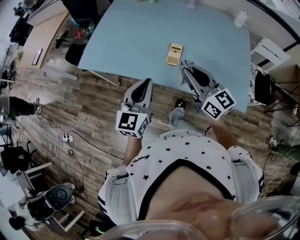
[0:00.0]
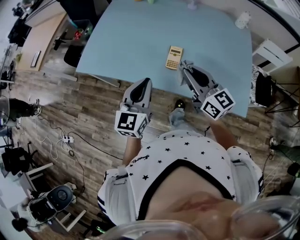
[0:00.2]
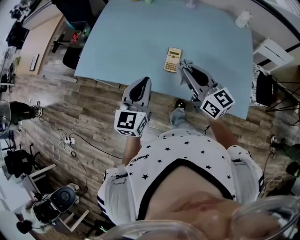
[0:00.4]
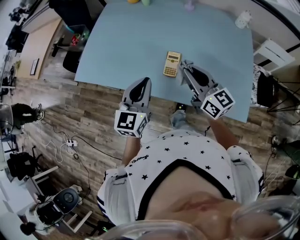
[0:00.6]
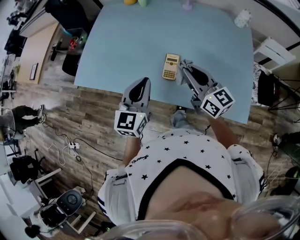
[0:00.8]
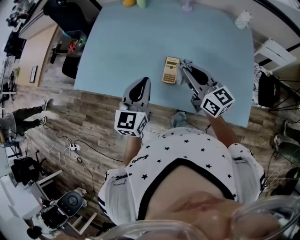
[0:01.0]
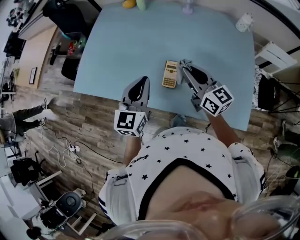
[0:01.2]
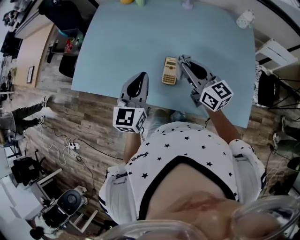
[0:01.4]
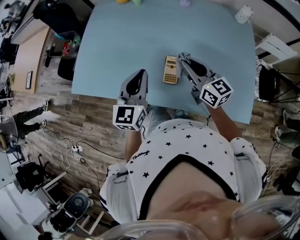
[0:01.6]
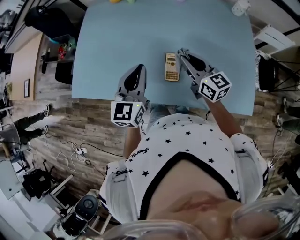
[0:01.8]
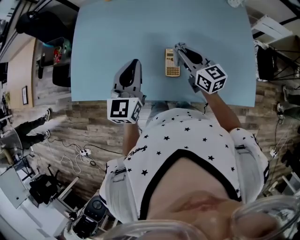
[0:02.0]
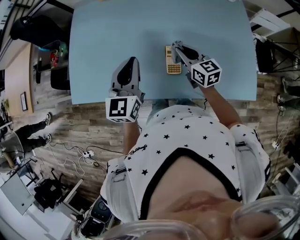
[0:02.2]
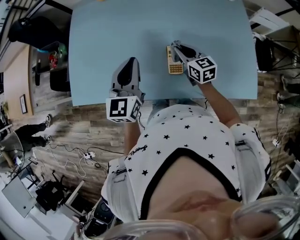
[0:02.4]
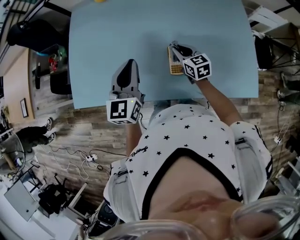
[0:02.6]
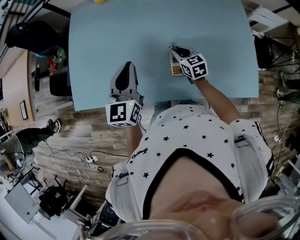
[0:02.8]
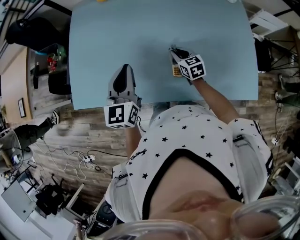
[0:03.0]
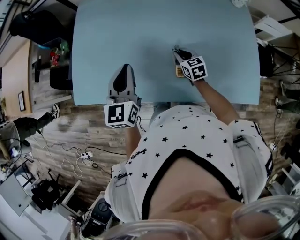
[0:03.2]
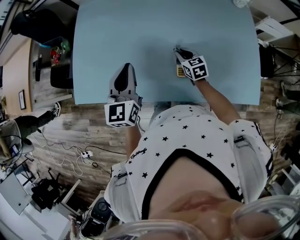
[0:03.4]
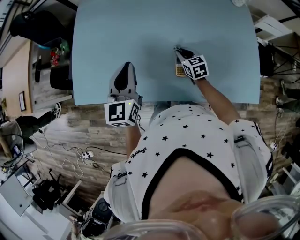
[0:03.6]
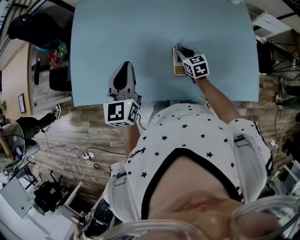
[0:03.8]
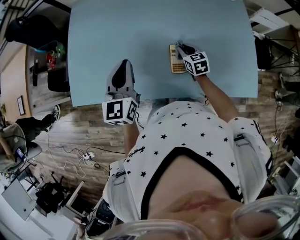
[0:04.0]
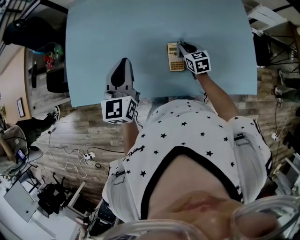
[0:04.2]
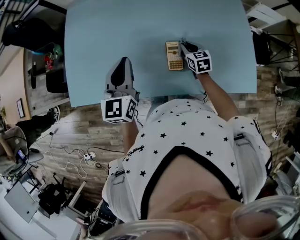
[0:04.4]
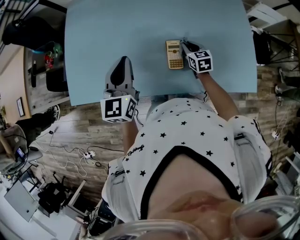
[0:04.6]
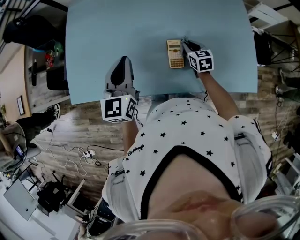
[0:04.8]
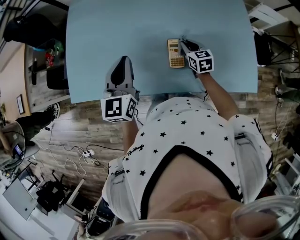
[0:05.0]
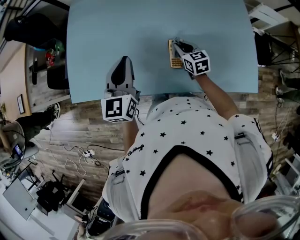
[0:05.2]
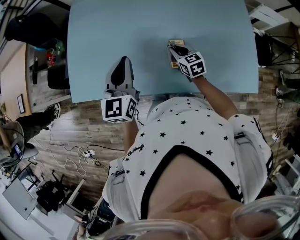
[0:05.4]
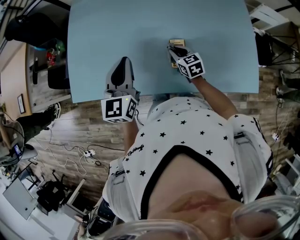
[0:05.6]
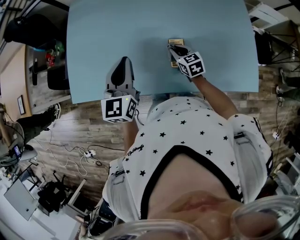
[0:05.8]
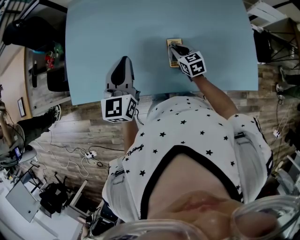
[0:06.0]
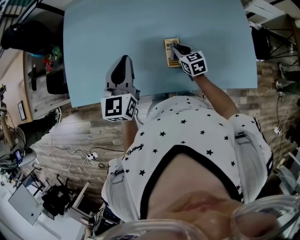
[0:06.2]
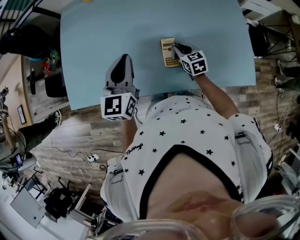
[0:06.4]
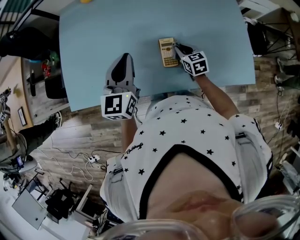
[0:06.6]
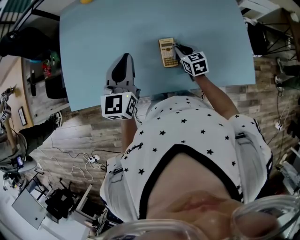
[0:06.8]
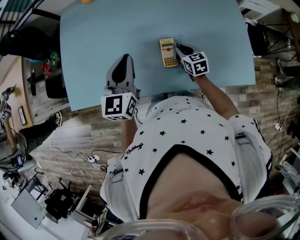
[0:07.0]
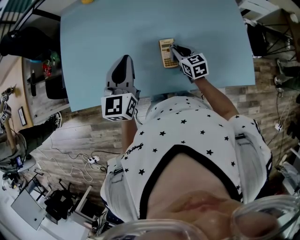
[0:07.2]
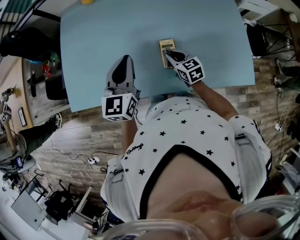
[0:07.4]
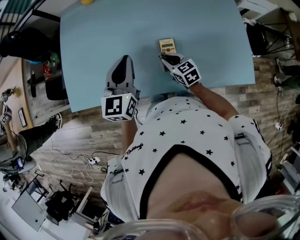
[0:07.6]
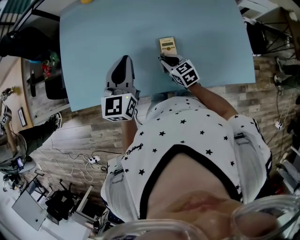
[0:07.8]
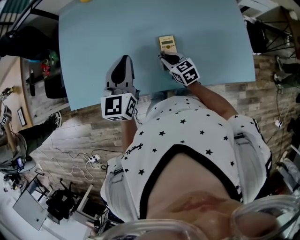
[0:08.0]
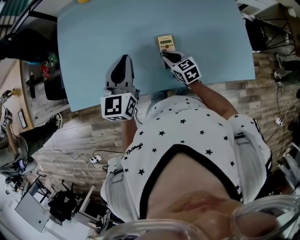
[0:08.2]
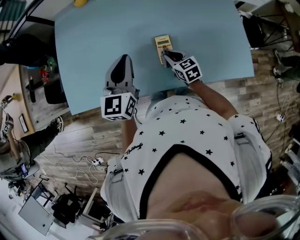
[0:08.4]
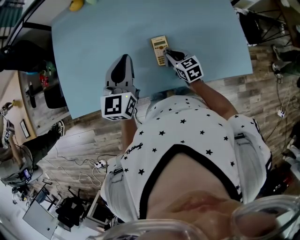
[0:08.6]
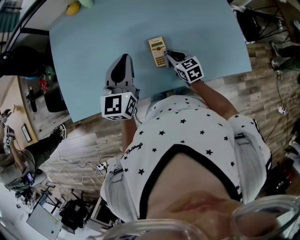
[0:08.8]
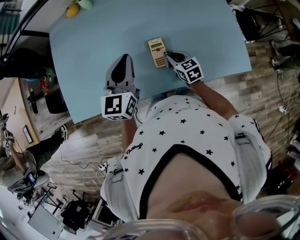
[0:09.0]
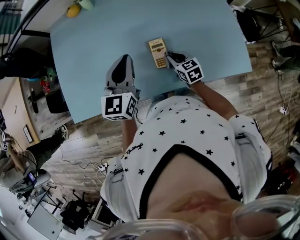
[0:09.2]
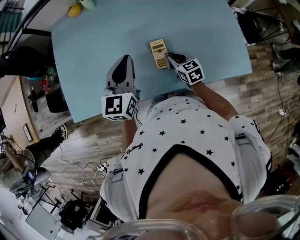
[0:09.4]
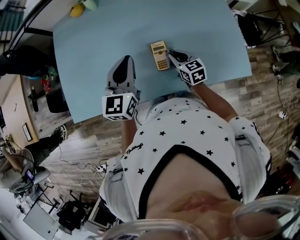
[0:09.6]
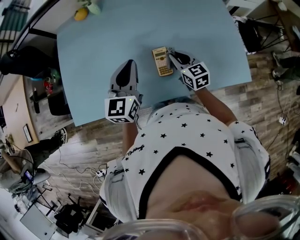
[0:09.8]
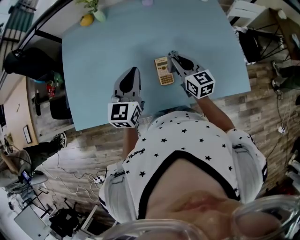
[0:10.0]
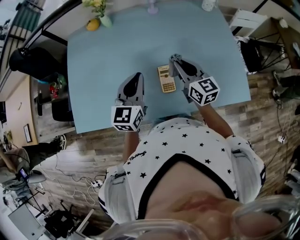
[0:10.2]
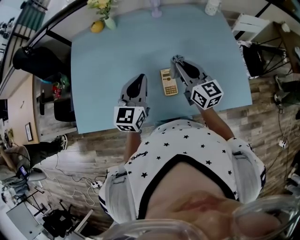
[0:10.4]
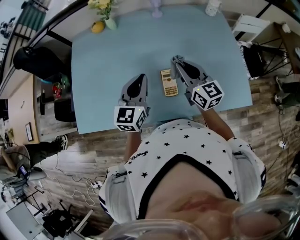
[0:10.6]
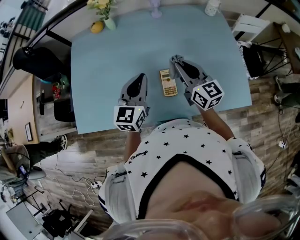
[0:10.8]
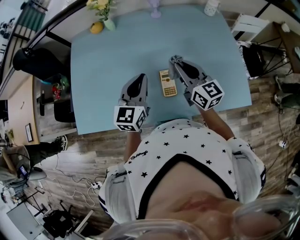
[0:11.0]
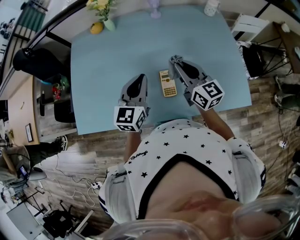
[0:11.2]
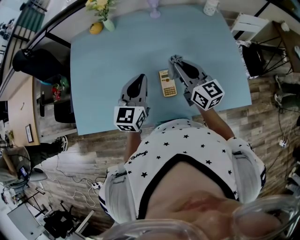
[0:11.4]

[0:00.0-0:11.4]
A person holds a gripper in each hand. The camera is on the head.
0:00.0 to 0:01.4: The two grippers go approximately 15 cm forward.
0:01.4 to 0:02.8: The left gripper moves to the left and forward, roughly 10 cm, while the right gripper goes some 20 cm downward and forward, and tilts its fingers some 30 degrees downward.
0:02.8 to 0:04.2: The right gripper moves roughly 5 cm.
0:04.2 to 0:05.6: The right gripper travels to the left by approximately 5 cm.
0:05.6 to 0:07.2: The right gripper travels to the right by roughly 5 cm.
0:08.6 to 0:10.0: The right gripper moves upward, roughly 15 cm, and turns by about 20 degrees.
0:10.0 to 0:11.4: The right gripper goes about 10 cm upward.

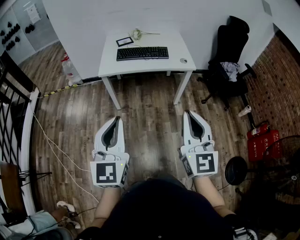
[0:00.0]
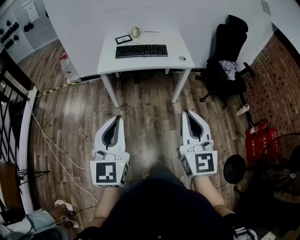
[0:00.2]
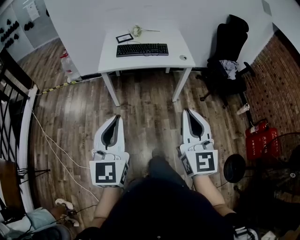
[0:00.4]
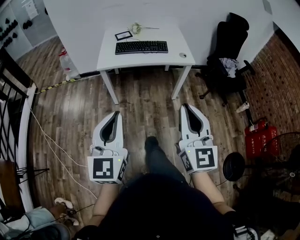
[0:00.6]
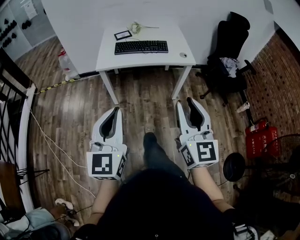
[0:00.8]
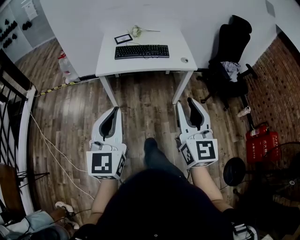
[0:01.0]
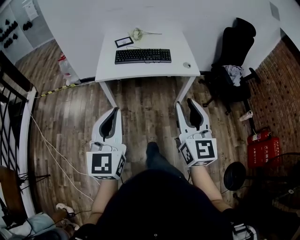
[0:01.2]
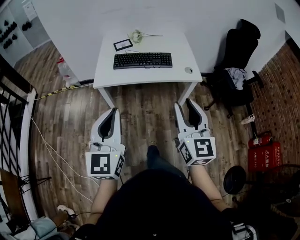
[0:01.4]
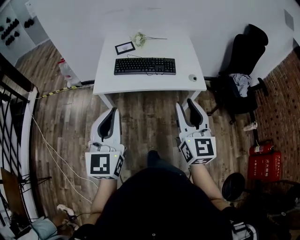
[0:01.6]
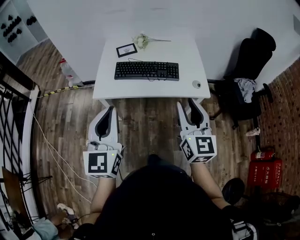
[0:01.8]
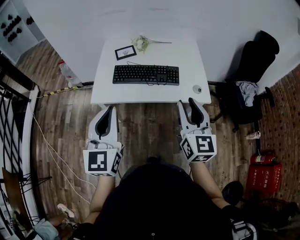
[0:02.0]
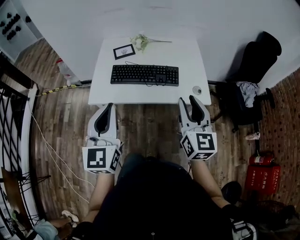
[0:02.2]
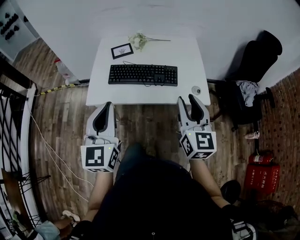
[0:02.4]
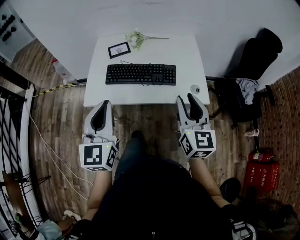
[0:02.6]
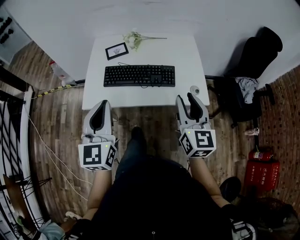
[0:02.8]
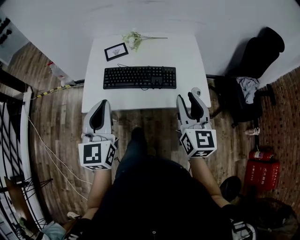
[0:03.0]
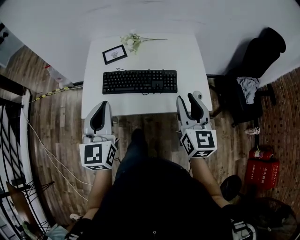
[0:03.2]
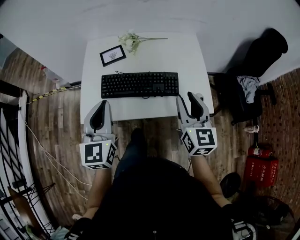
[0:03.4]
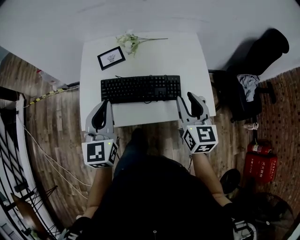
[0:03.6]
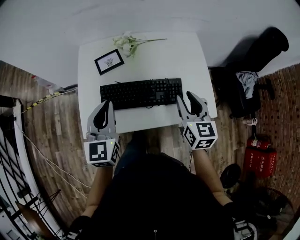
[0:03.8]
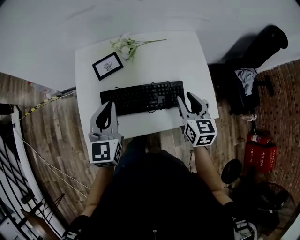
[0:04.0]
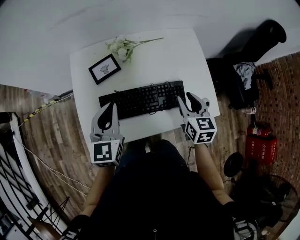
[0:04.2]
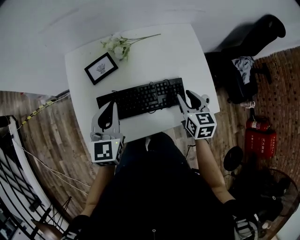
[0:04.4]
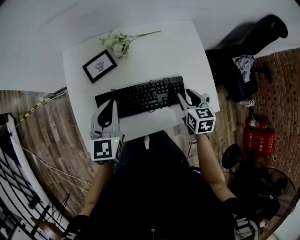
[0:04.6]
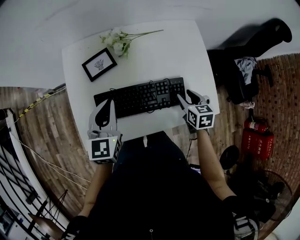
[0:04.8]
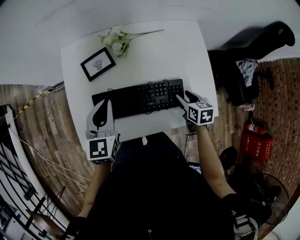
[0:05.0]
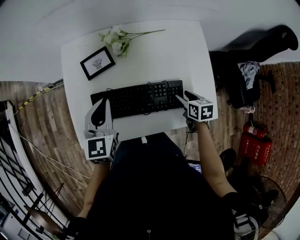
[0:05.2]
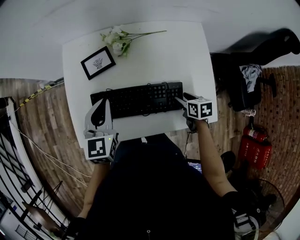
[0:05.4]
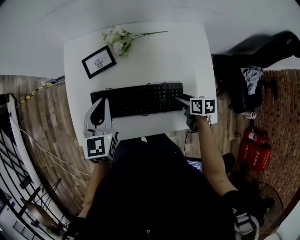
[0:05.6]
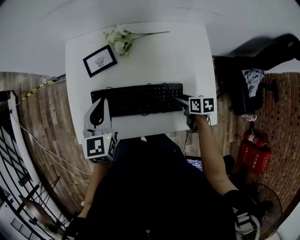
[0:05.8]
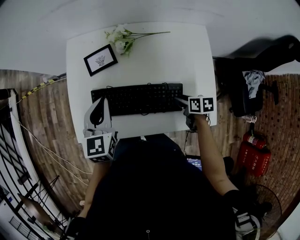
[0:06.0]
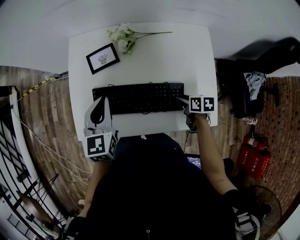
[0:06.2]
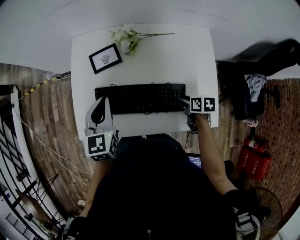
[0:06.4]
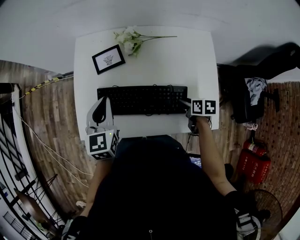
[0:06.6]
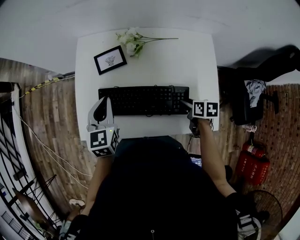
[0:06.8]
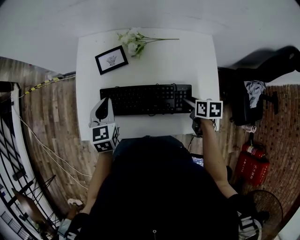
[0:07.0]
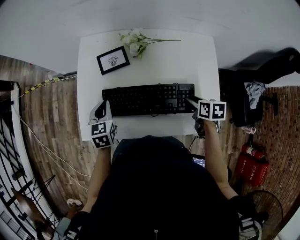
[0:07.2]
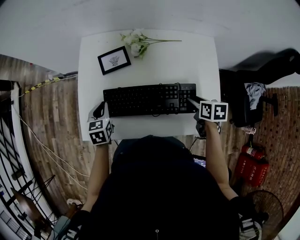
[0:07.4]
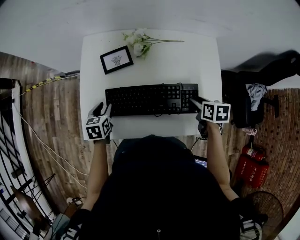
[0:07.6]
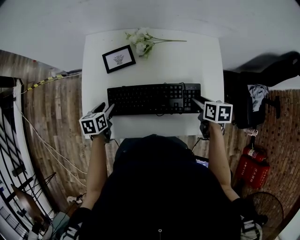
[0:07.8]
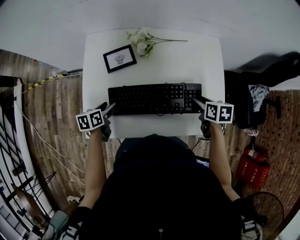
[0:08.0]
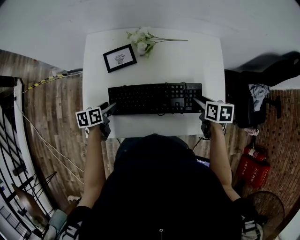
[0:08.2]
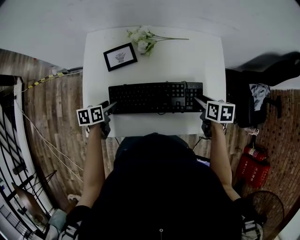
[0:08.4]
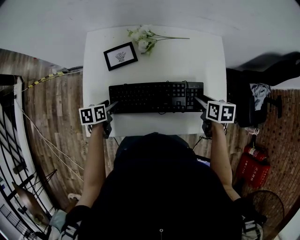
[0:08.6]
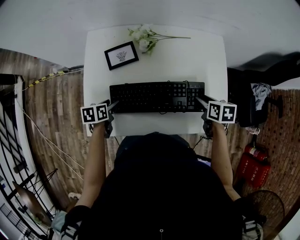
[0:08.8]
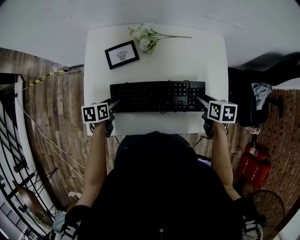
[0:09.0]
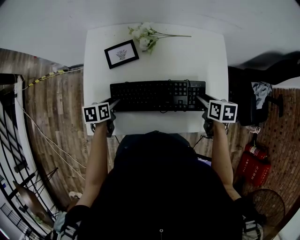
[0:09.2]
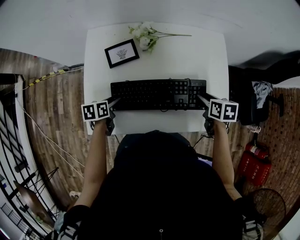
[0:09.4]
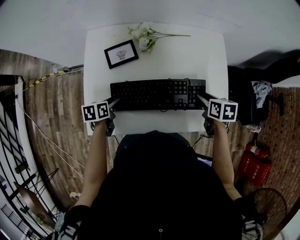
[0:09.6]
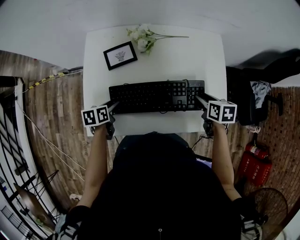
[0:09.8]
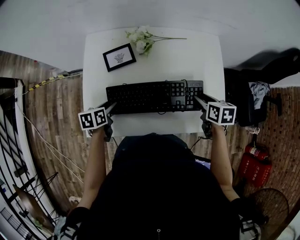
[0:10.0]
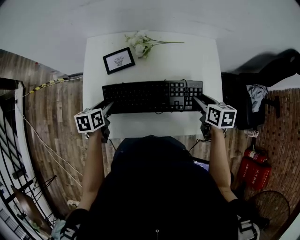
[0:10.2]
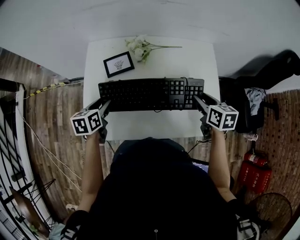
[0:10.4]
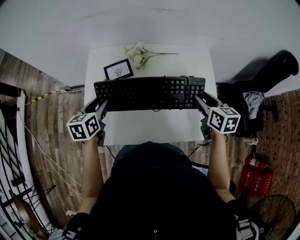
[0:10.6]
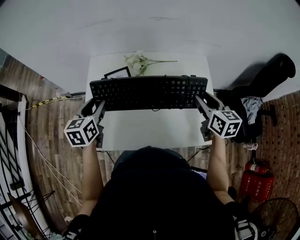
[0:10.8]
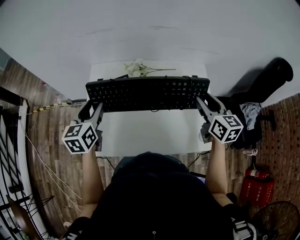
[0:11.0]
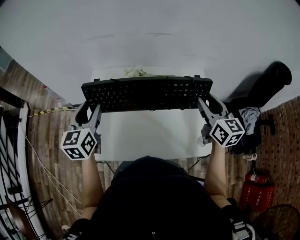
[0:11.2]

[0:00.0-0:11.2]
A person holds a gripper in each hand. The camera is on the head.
0:00.0 to 0:01.6: Both grippers travel together forward, some 25 cm. The right gripper opens.
0:01.6 to 0:03.2: Both grippers move forward, about 25 cm.
0:03.2 to 0:04.8: The left gripper heads forward and downward, covering about 25 cm. Meanwhile the right gripper heads downward and forward, covering approximately 30 cm, and tips its fingers downward by some 40 degrees.
0:04.8 to 0:06.4: The right gripper is displaced downward by about 5 cm, and turns by approximately 30 degrees.
0:06.4 to 0:08.0: The left gripper moves downward and to the left, approximately 20 cm, turns by approximately 50 degrees, and opens up. The right gripper moves upward, roughly 10 cm.
0:08.0 to 0:09.6: The grippers stay close to where they were, moving slightly.
0:09.6 to 0:11.2: The grippers both shift upward by roughly 25 cm. The right gripper tilts its fingers some 50 degrees upward. The left gripper tips its fingers upward by some 40 degrees.

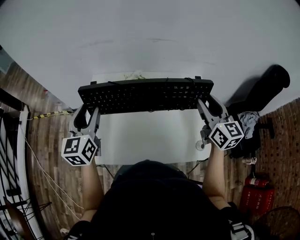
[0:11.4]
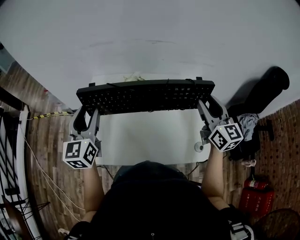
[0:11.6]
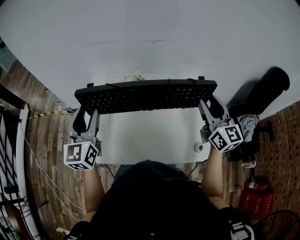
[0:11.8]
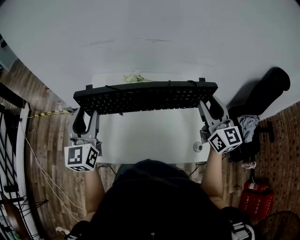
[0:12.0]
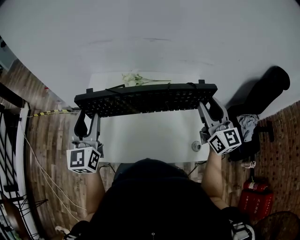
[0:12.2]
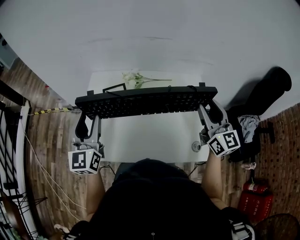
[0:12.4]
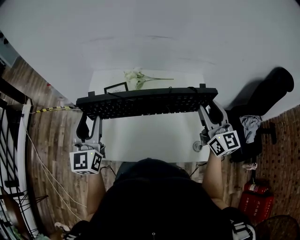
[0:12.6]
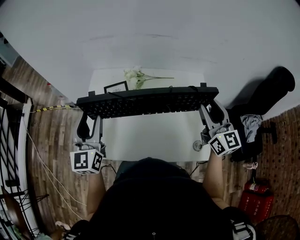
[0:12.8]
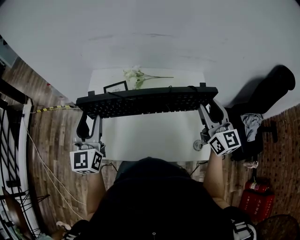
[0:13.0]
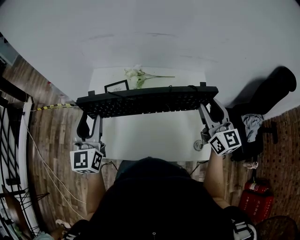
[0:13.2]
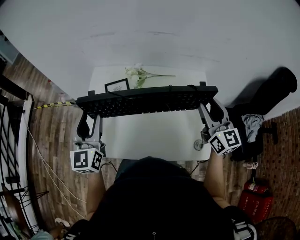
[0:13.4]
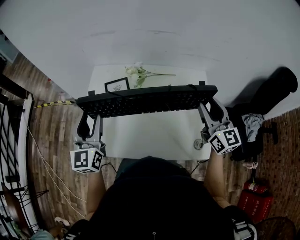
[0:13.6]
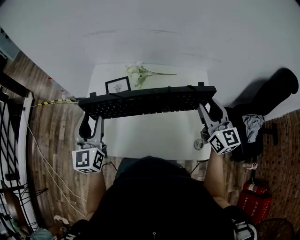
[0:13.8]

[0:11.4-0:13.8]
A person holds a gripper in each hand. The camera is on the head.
0:11.4 to 0:12.6: The grippers make only small movements.
0:12.6 to 0:13.8: The grippers make only small movements.
